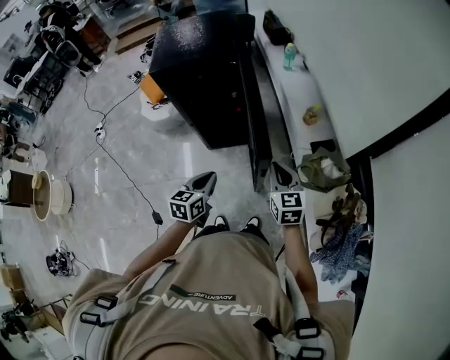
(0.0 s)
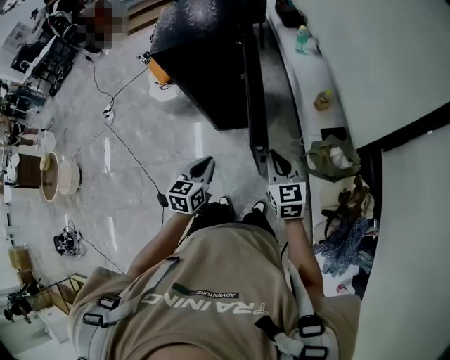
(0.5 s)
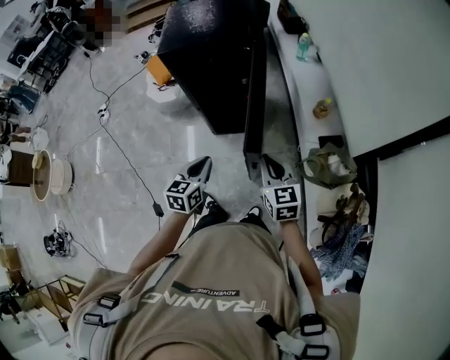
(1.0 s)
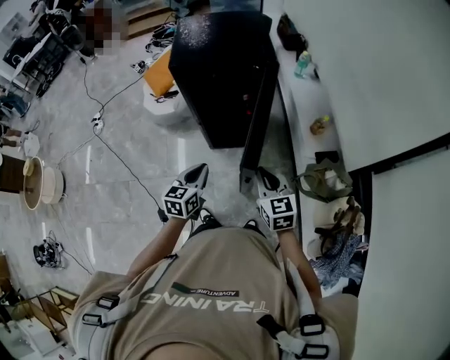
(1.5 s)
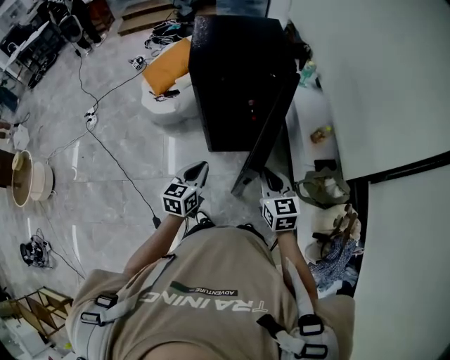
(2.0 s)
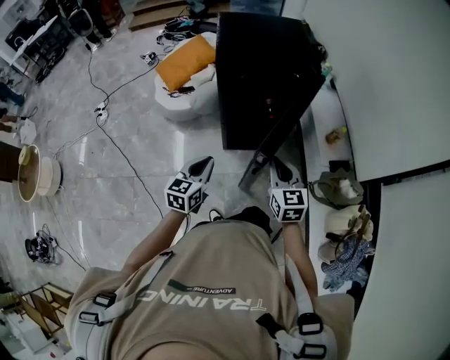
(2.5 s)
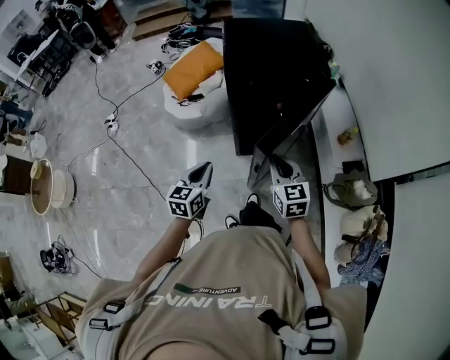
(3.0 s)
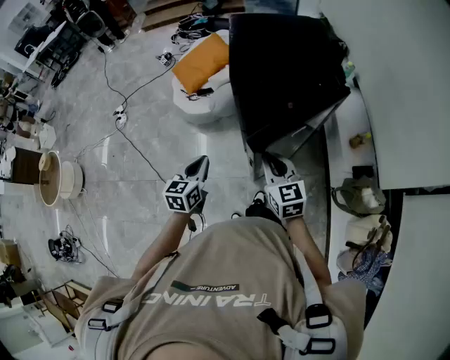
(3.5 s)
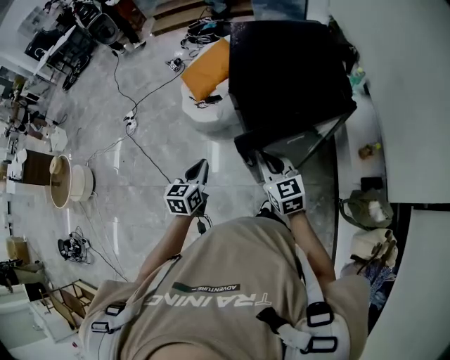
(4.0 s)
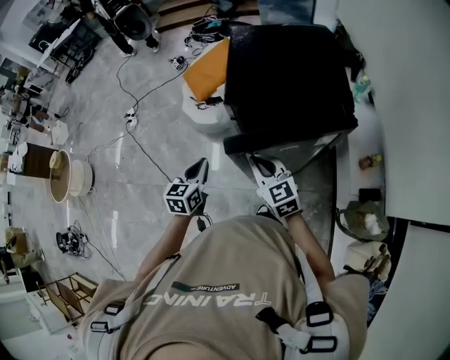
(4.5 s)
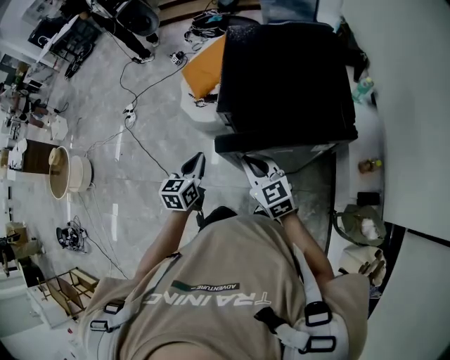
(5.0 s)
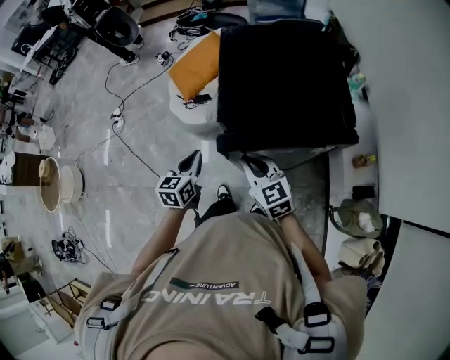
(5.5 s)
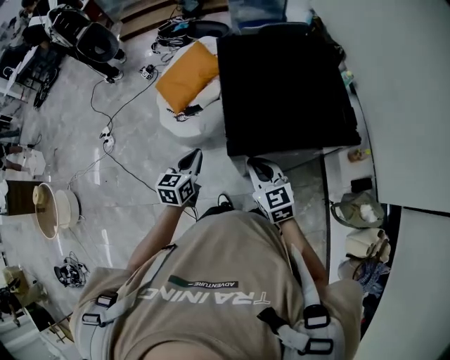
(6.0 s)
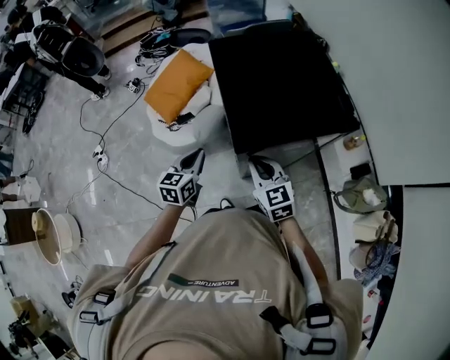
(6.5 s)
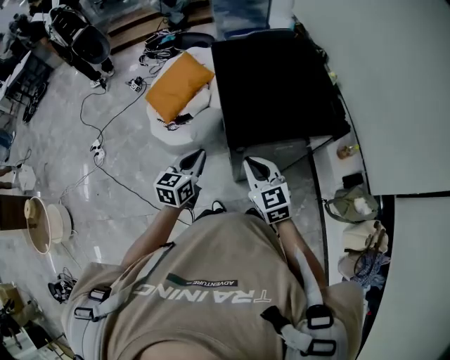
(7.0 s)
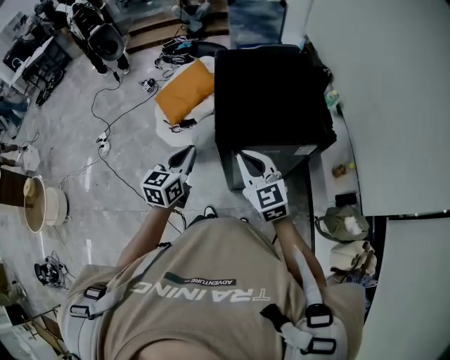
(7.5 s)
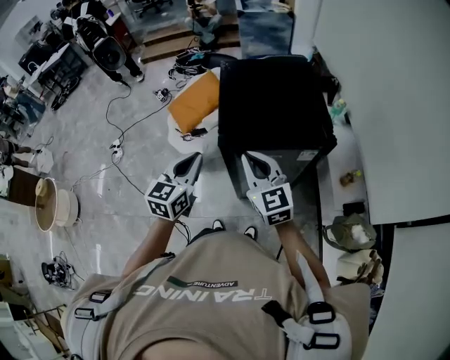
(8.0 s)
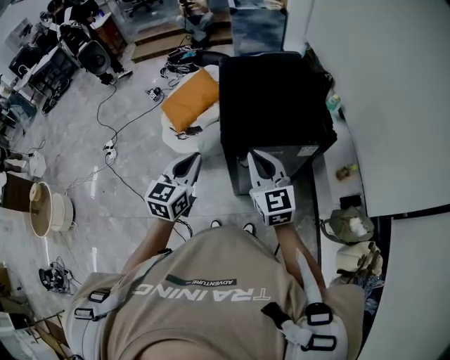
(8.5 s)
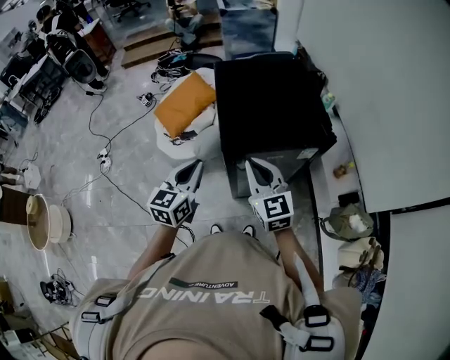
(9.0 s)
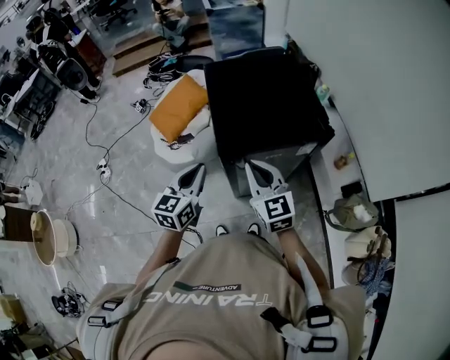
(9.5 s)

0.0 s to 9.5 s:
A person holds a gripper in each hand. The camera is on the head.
0.0 to 2.0 s: The right gripper moves to the left, some 15 cm. Meanwhile the left gripper goes roughly 15 cm to the left and forward.
2.0 to 4.0 s: The right gripper goes some 25 cm forward and to the left. The left gripper shifts roughly 20 cm to the left and forward.
4.0 to 5.5 s: The two grippers go about 10 cm forward.
5.5 to 7.5 s: Both grippers move upward, roughly 10 cm.

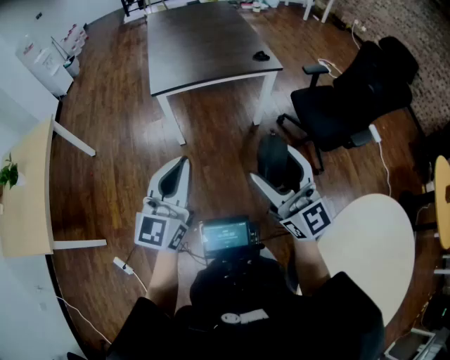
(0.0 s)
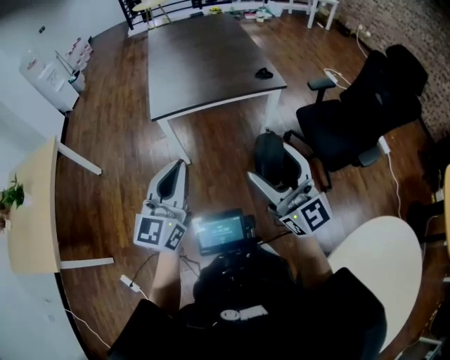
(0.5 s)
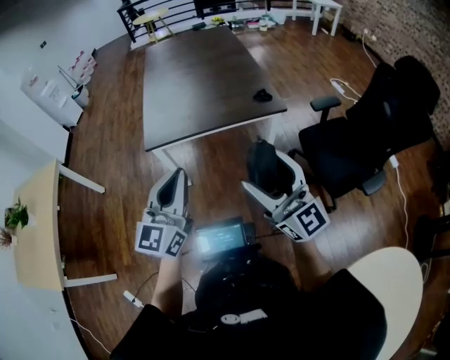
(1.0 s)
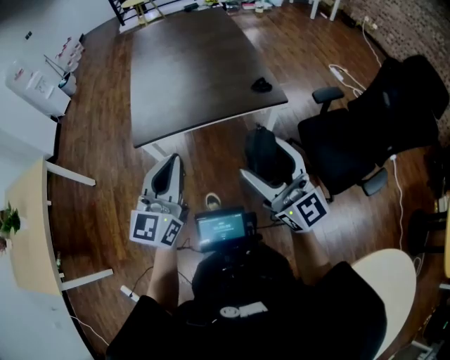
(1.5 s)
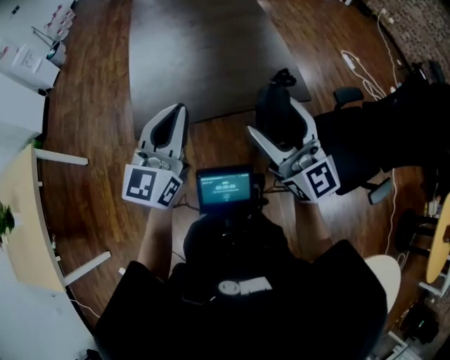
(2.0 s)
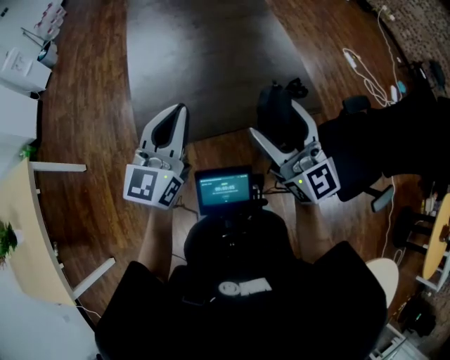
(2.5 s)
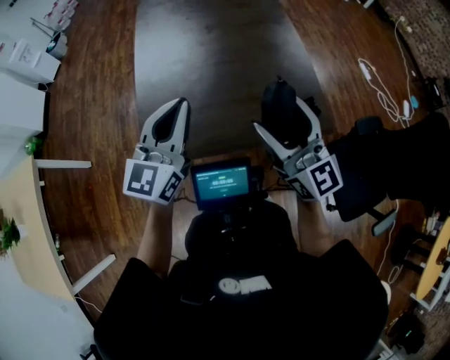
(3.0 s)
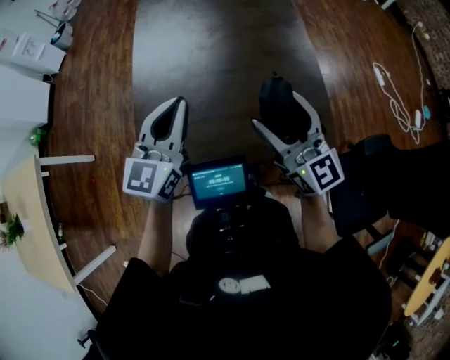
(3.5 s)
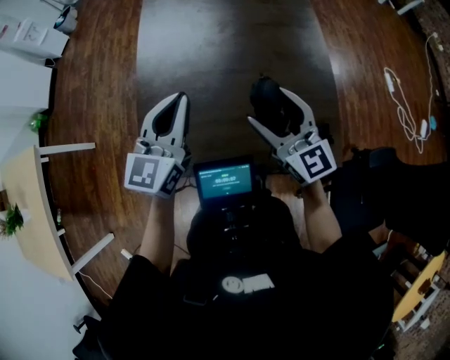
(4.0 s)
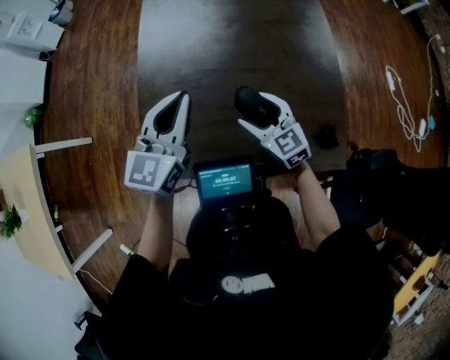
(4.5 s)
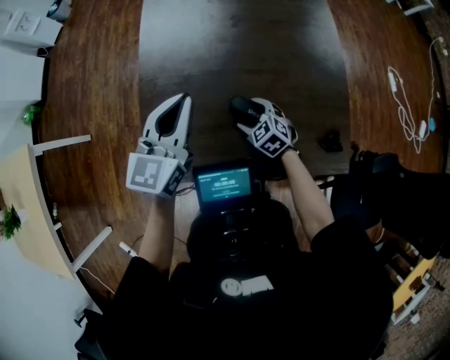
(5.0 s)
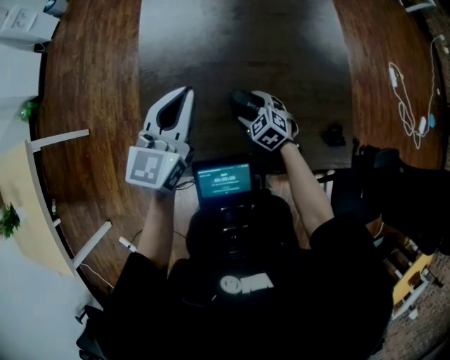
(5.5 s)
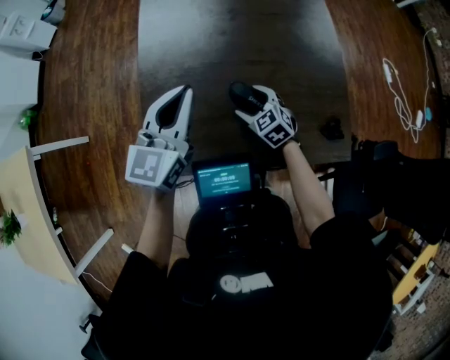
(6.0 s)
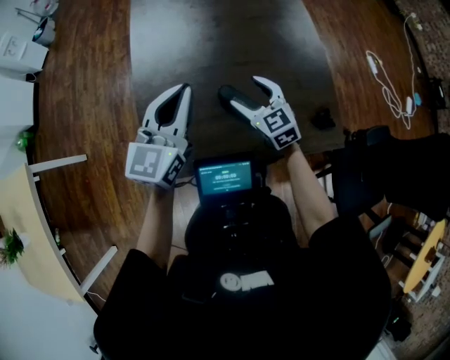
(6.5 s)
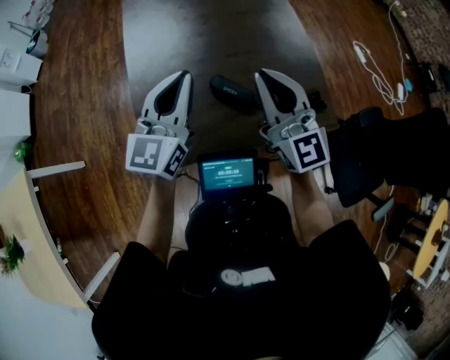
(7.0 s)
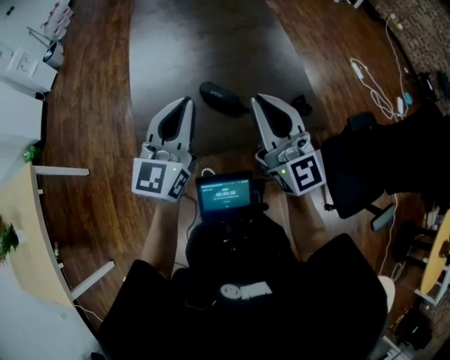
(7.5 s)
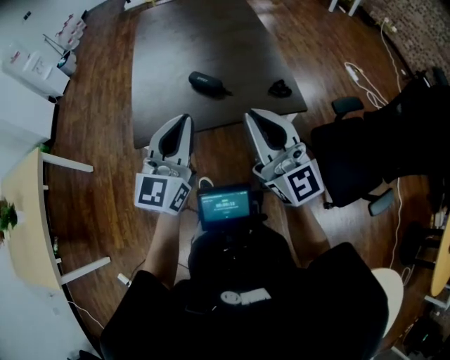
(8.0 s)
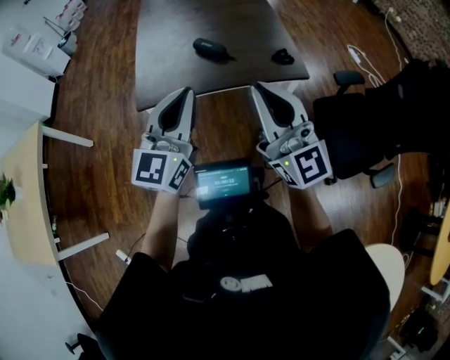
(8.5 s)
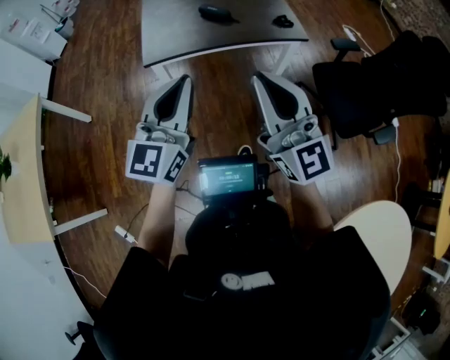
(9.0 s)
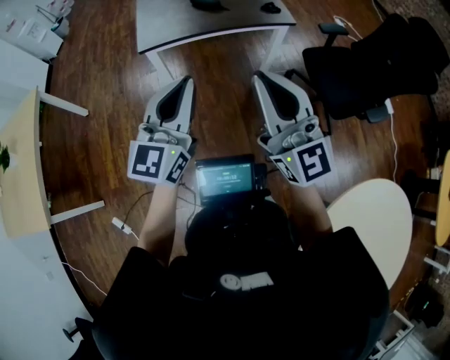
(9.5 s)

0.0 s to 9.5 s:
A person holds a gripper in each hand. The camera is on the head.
0.0 to 2.0 s: The two grippers travel together, forward, approximately 50 cm.
2.0 to 4.0 s: The right gripper is displaced forward and downward by some 35 cm, and rotates approximately 20 degrees. Meanwhile the left gripper travels forward by roughly 30 cm.
4.0 to 5.5 s: The right gripper goes some 30 cm downward, and tilts its fingers roughly 50 degrees downward. The left gripper ends up some 10 cm from where it was.
5.5 to 7.5 s: The left gripper heads backward and upward, covering approximately 20 cm. The right gripper shifts roughly 50 cm upward and backward, points its fingers some 70 degrees further upward, and closes.
7.5 to 9.5 s: The pair of grippers is taken backward, some 50 cm.

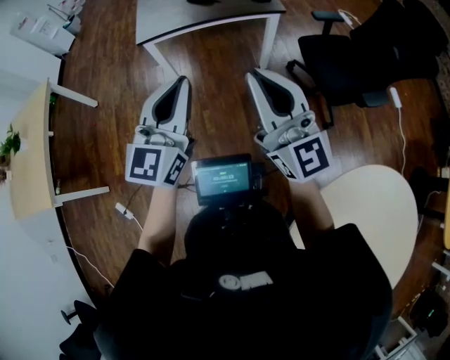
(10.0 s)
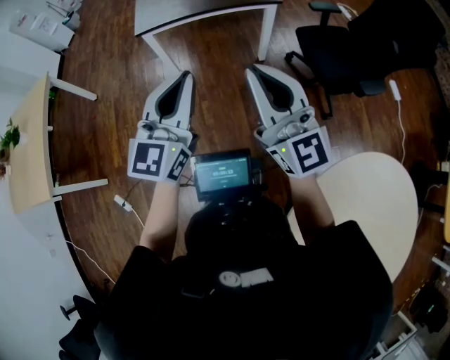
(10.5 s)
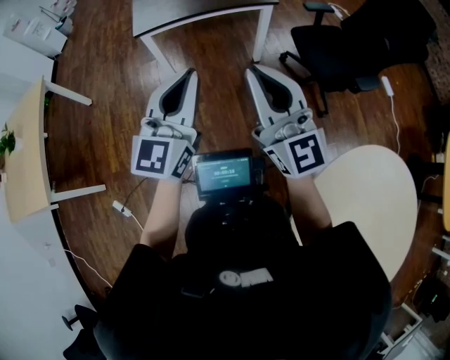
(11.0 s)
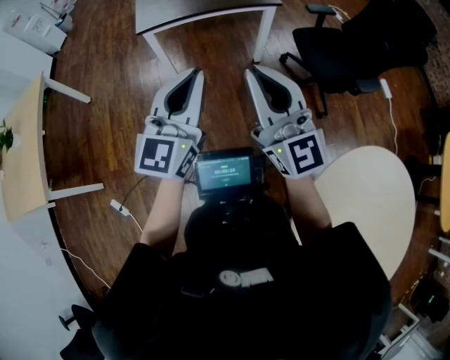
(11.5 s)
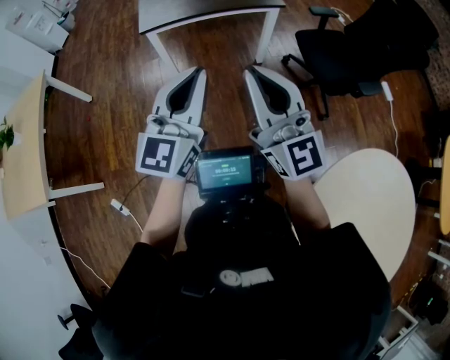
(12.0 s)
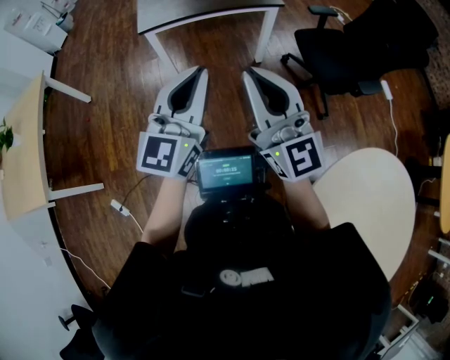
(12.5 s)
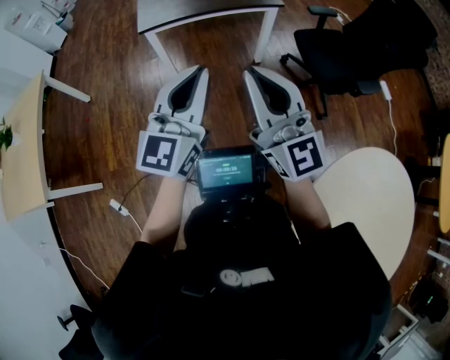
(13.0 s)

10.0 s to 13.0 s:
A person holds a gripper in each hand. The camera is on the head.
10.0 to 11.5 s: The right gripper is displaced to the left and backward by about 10 cm. The left gripper changes place by about 5 cm.
11.5 to 13.0 s: The two grippers keep their place.

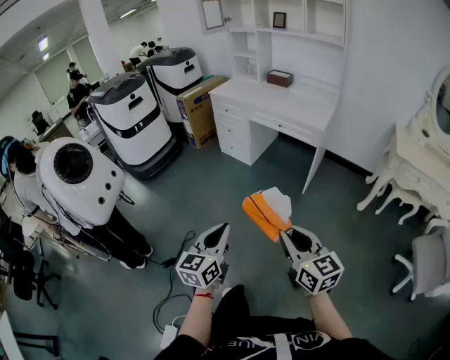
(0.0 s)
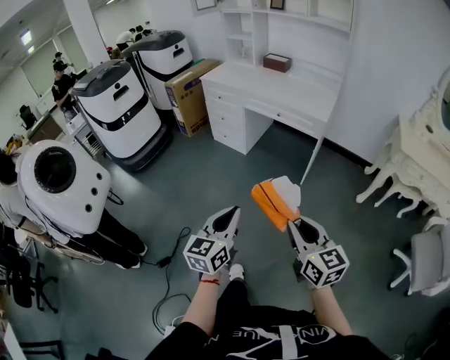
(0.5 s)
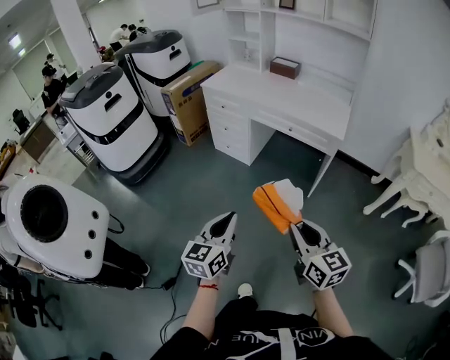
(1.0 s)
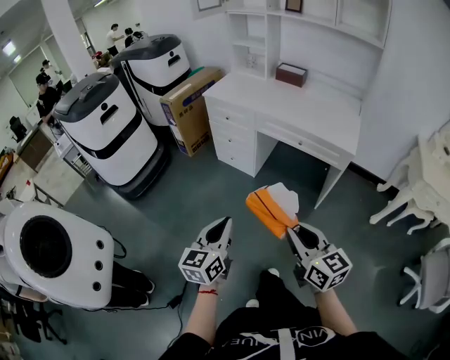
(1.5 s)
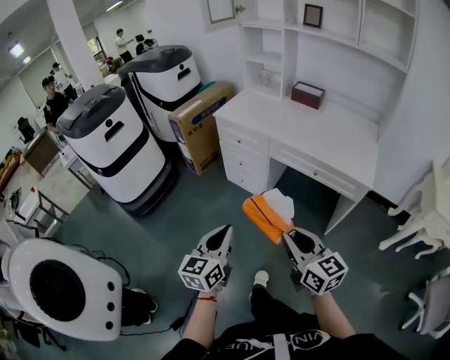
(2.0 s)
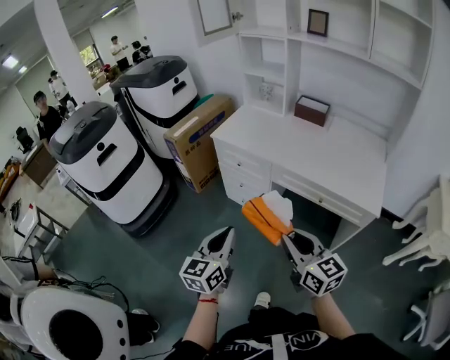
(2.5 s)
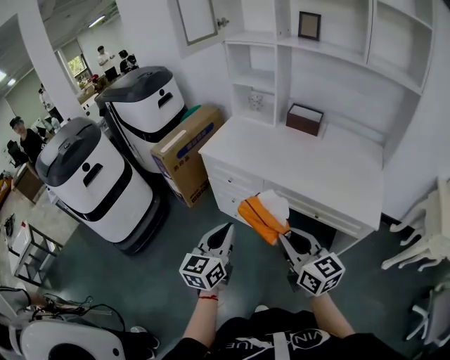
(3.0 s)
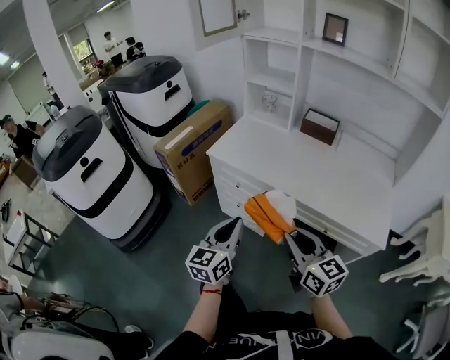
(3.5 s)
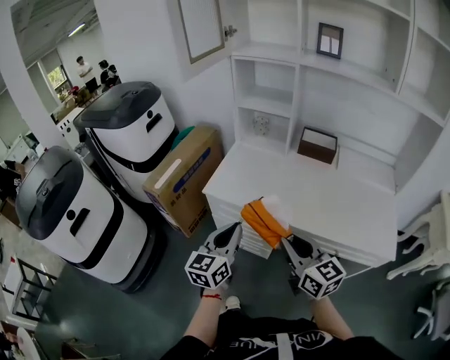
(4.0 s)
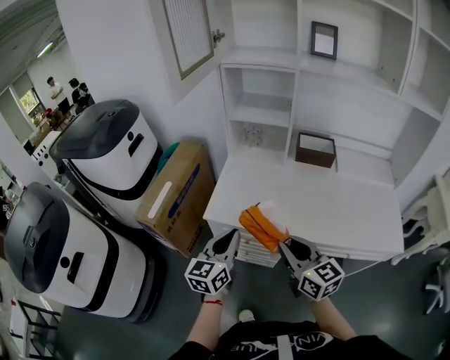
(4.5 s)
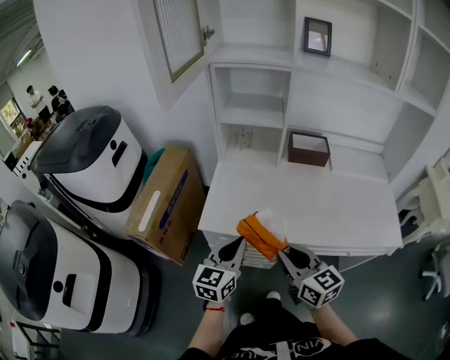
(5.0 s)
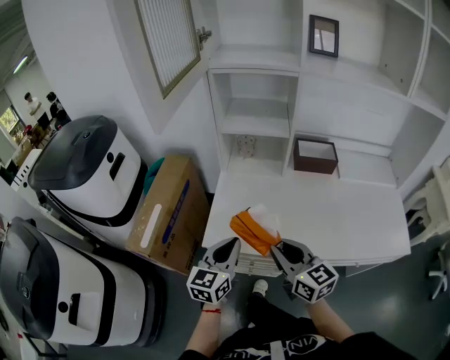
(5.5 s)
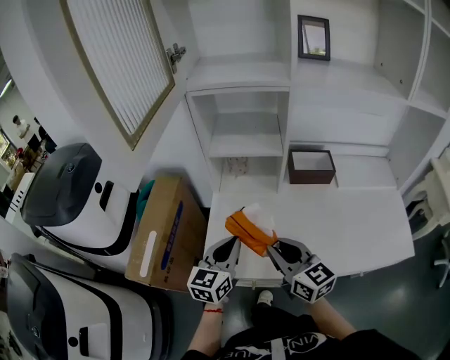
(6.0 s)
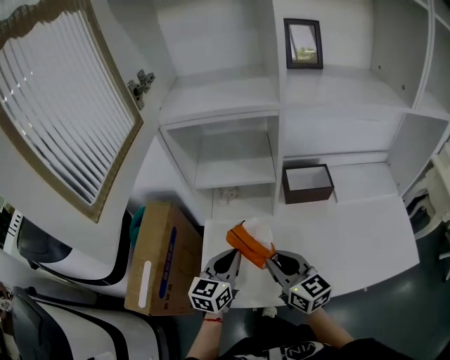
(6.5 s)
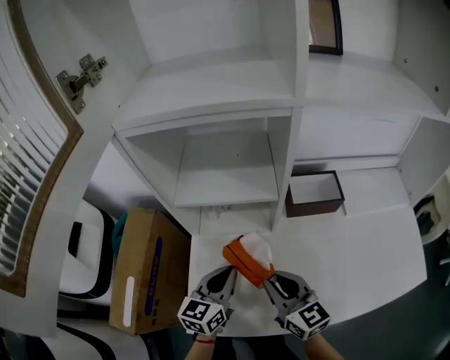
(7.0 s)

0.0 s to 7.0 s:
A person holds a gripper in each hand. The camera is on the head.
0.0 to 2.0 s: The pair of grippers is taken forward, some 50 cm.
2.0 to 3.5 s: Both grippers move forward, approximately 35 cm.
3.5 to 5.0 s: The left gripper shifts about 25 cm forward, and changes its angle by approximately 20 degrees. Meanwhile the right gripper heads forward and to the left, covering about 30 cm.
5.0 to 7.0 s: The grippers both shift forward by about 30 cm.
